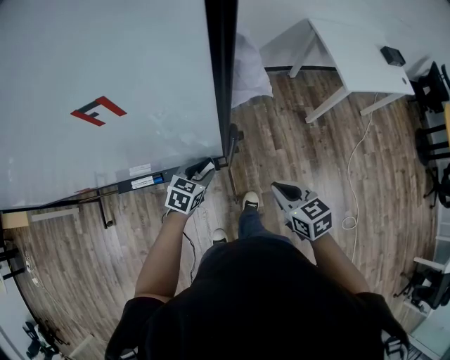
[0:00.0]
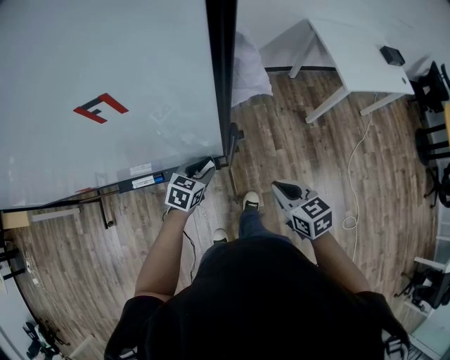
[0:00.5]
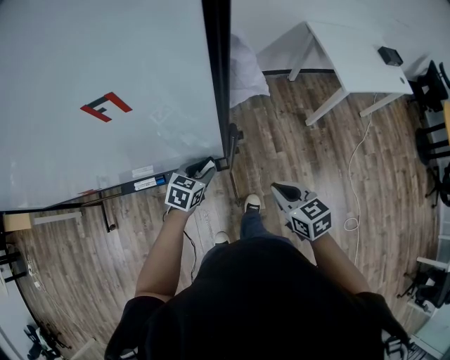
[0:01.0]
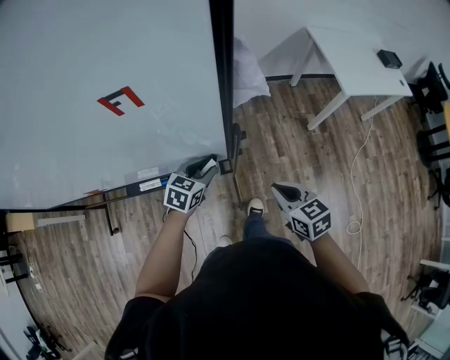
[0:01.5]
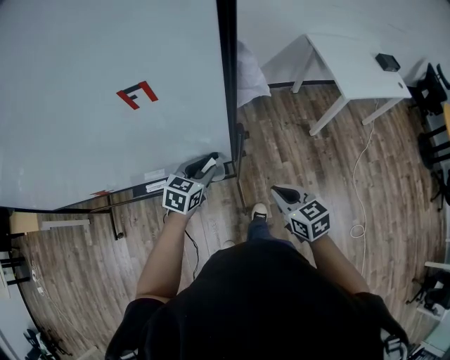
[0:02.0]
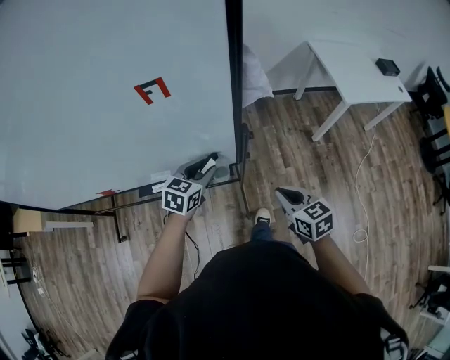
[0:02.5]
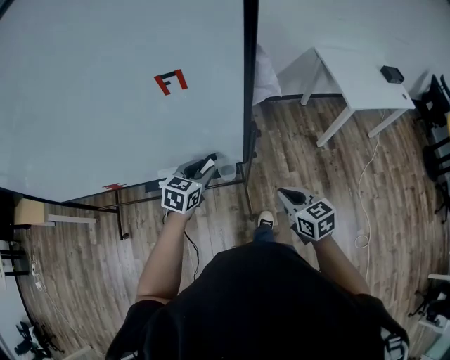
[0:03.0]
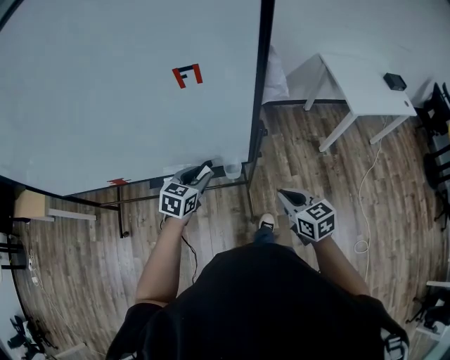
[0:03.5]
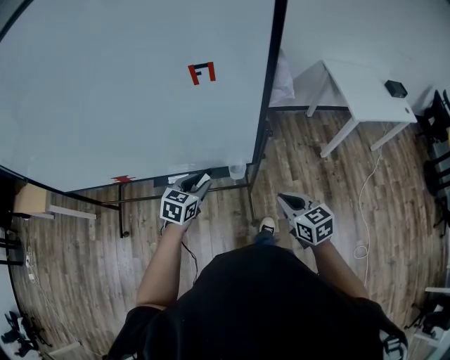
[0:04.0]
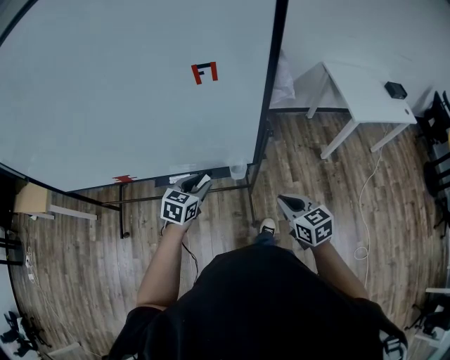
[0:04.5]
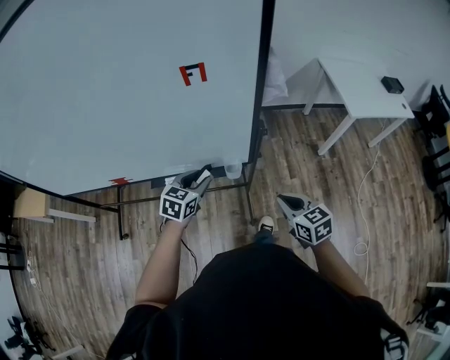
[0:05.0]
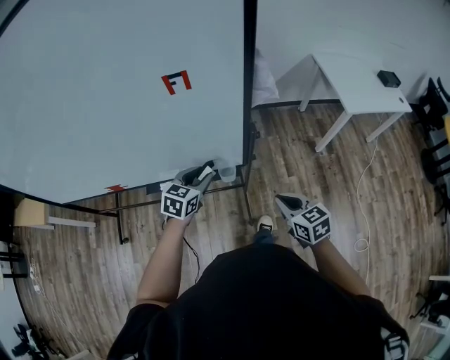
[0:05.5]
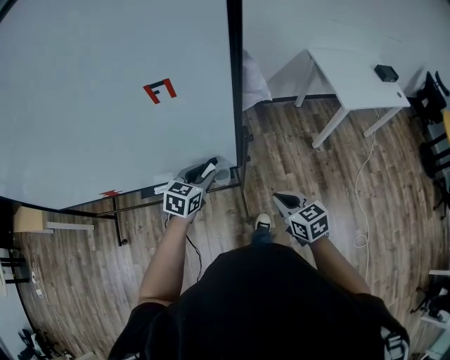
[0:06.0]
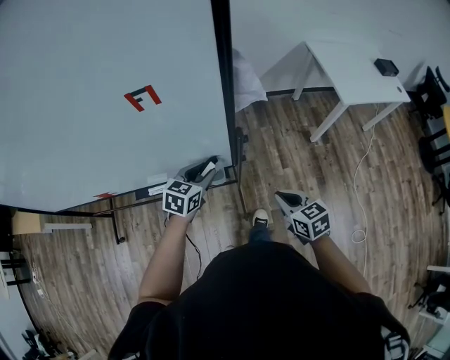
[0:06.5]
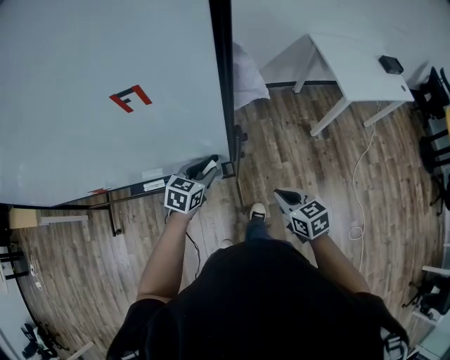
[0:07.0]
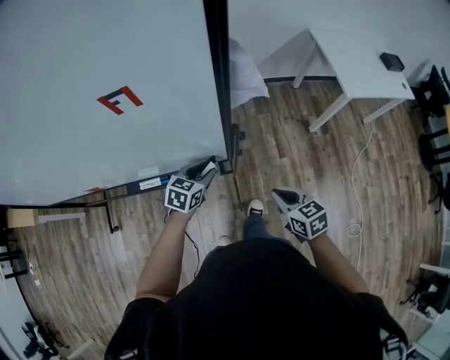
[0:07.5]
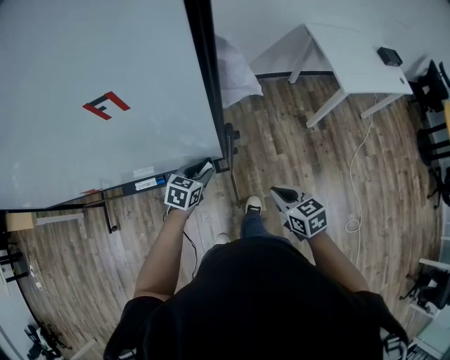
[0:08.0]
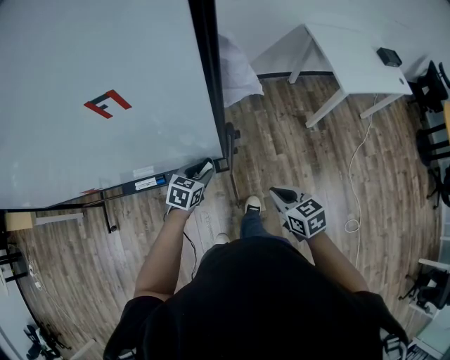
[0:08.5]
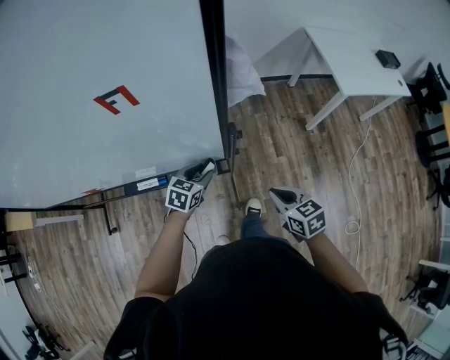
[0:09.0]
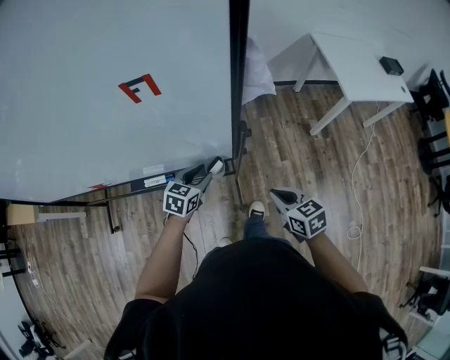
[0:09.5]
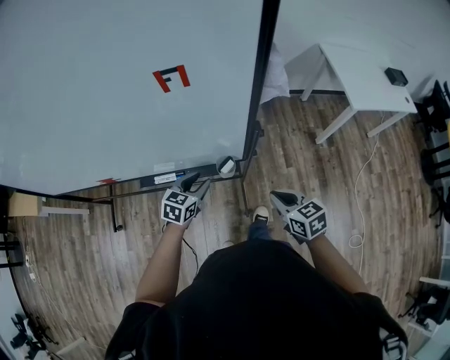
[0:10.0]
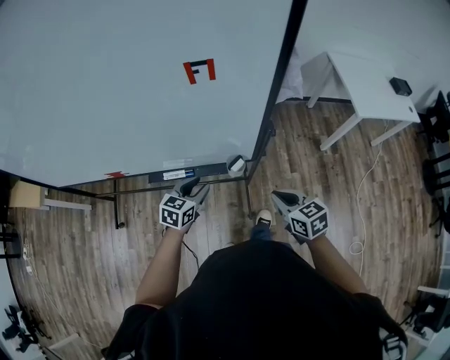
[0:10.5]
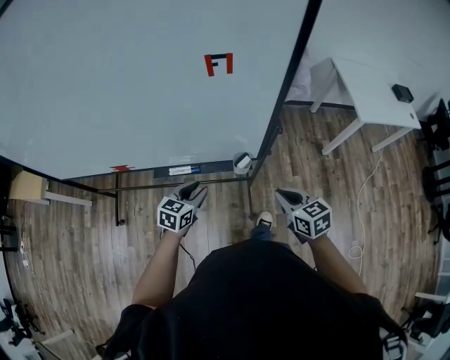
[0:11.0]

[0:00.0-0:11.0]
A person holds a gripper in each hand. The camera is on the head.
0:00.0 to 0:02.0: The left gripper goes approximately 10 cm upward.
0:02.0 to 0:03.5: The right gripper changes place by approximately 5 cm, while the left gripper goes some 10 cm to the left and backward.
0:03.5 to 0:05.5: The grippers make only small movements.
0:05.5 to 0:07.5: The right gripper is displaced downward and forward by some 5 cm. The left gripper heads downward and to the right, covering some 10 cm.
0:07.5 to 0:09.0: The grippers stay close to where they were, moving slightly.
0:09.0 to 0:11.0: The left gripper is displaced to the left and backward by roughly 20 cm; the right gripper heads to the left, covering approximately 10 cm.

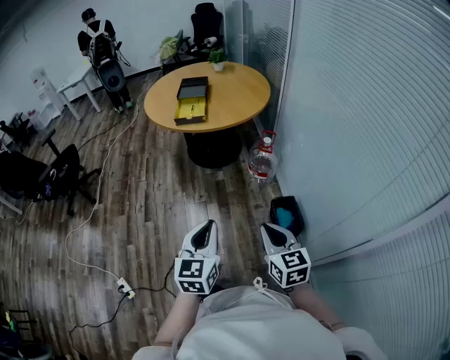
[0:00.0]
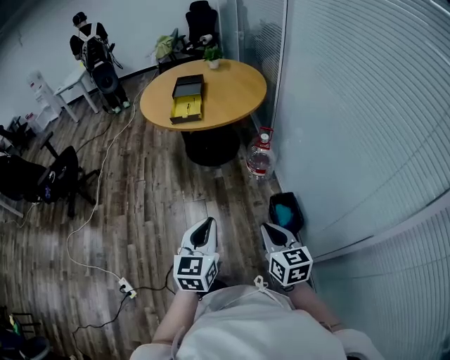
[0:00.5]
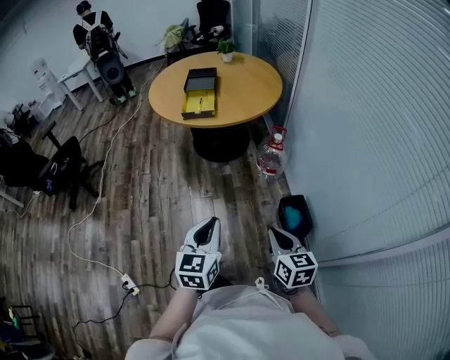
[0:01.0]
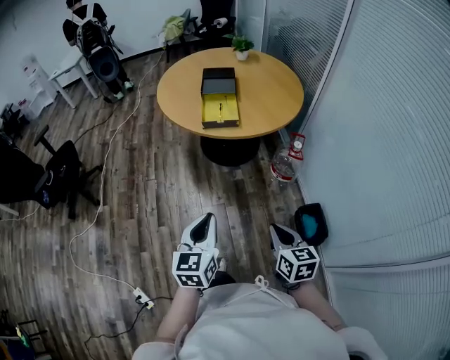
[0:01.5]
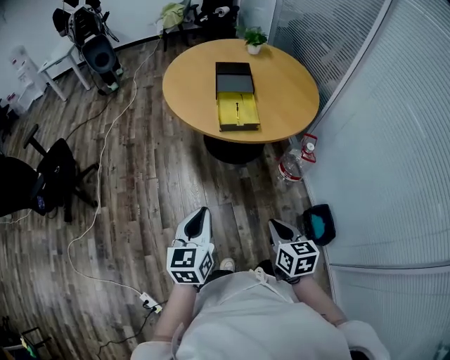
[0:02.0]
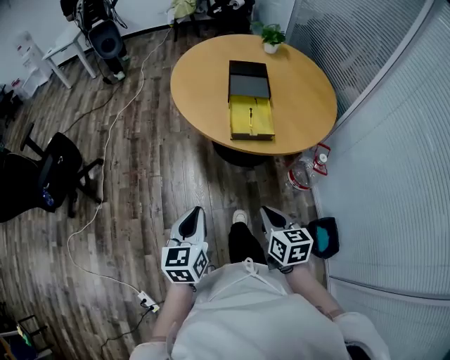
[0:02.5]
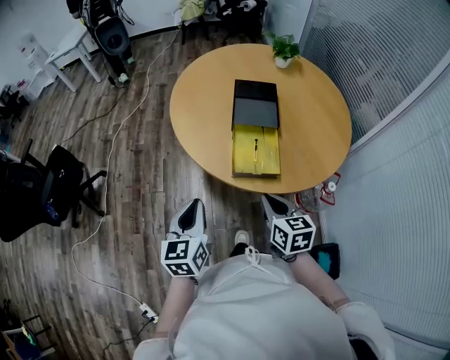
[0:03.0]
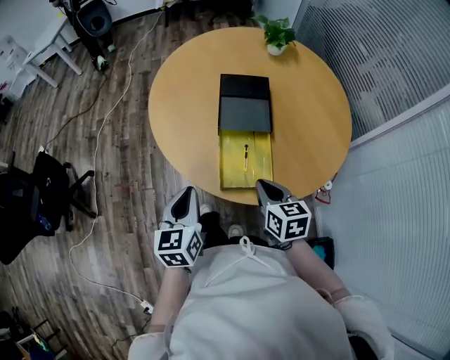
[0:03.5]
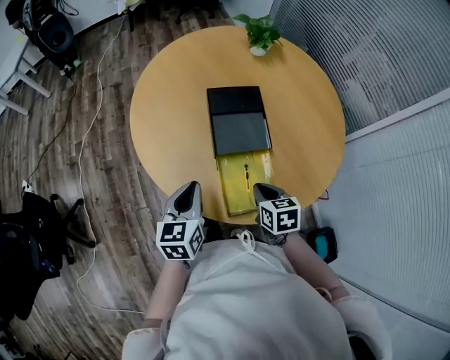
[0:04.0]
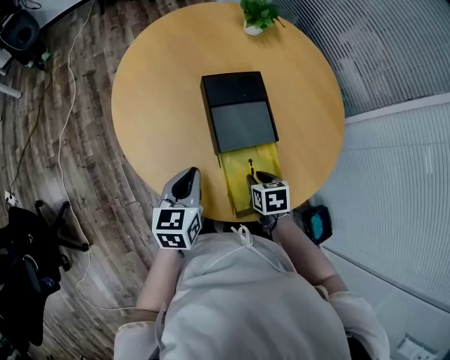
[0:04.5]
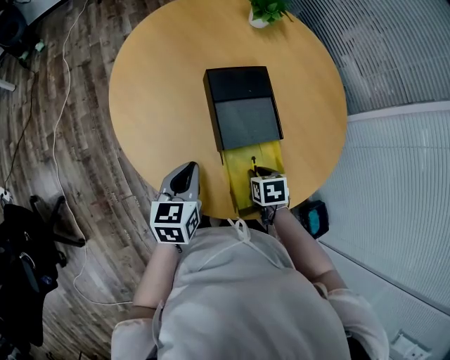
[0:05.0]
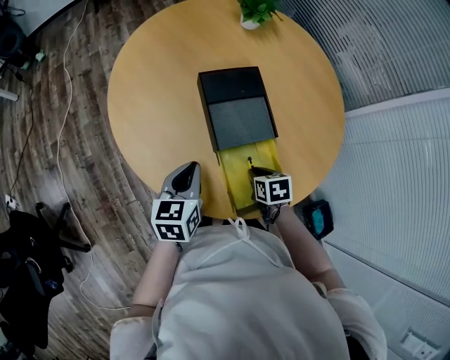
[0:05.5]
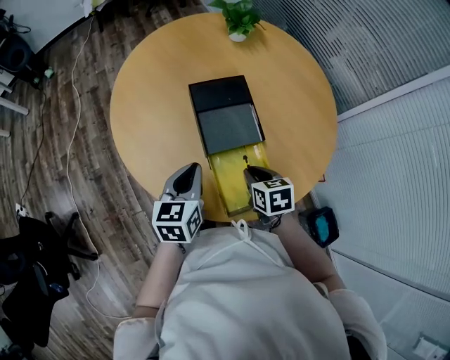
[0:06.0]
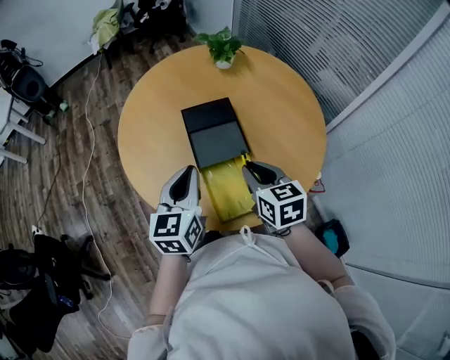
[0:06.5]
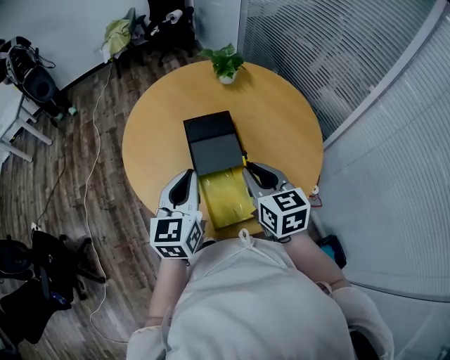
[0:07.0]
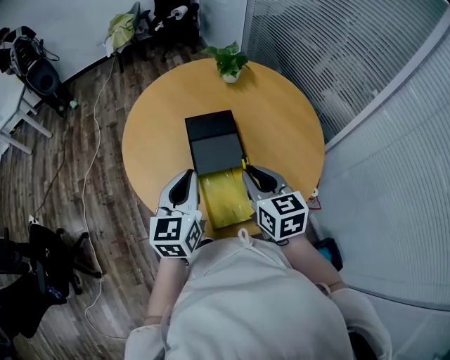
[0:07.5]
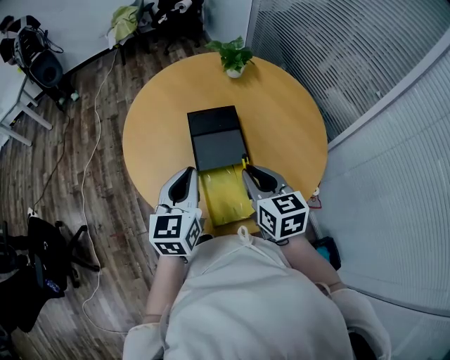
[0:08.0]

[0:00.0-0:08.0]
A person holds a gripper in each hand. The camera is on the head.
0:00.0 to 0:02.0: The pair of grippers is taken to the left and forward, roughly 50 cm.
0:02.0 to 0:04.0: The pair of grippers is taken forward, about 60 cm.
0:04.0 to 0:06.0: The left gripper moves forward, roughly 5 cm; the right gripper travels downward and back again, roughly 10 cm each way.
0:06.0 to 0:08.0: The two grippers go about 15 cm upward. The right gripper turns by some 30 degrees.

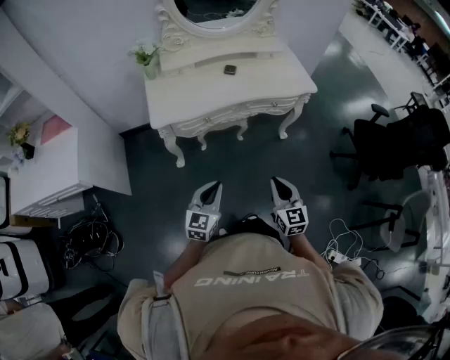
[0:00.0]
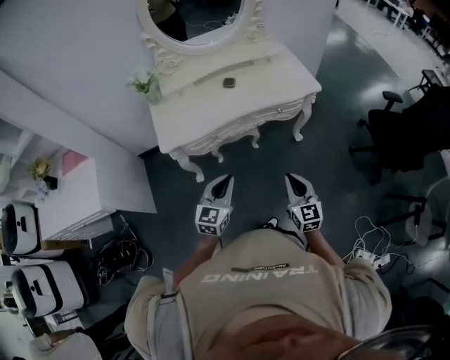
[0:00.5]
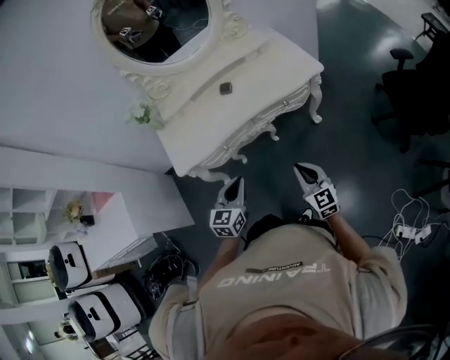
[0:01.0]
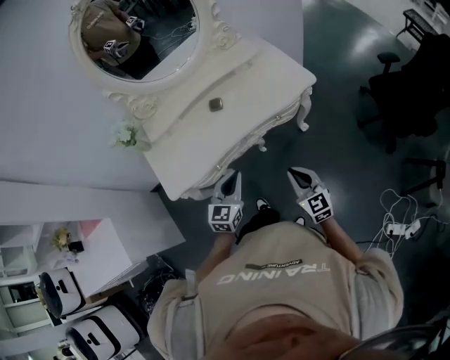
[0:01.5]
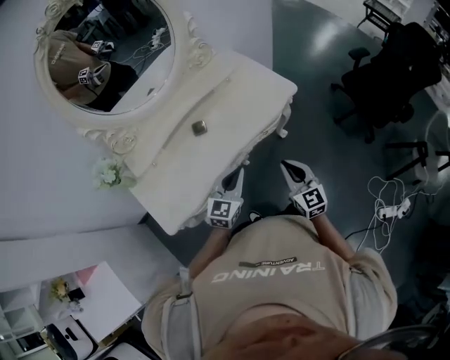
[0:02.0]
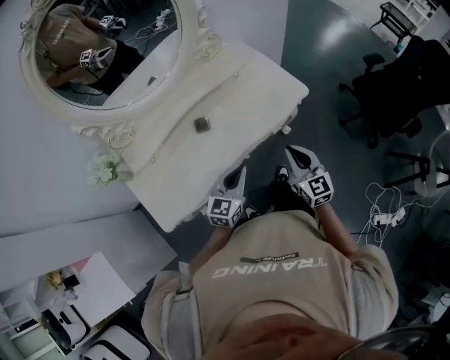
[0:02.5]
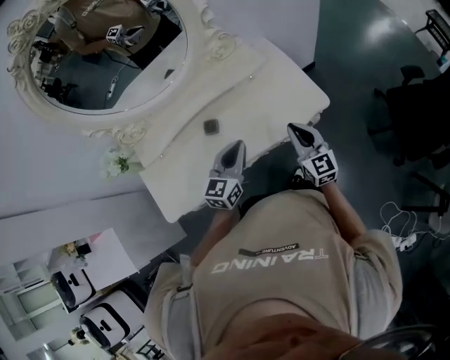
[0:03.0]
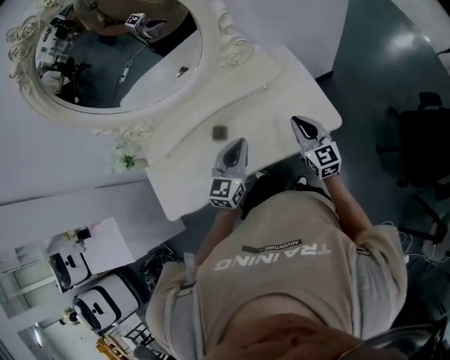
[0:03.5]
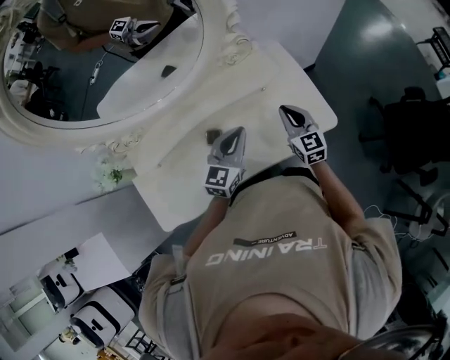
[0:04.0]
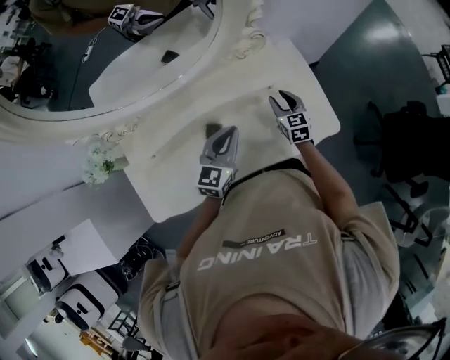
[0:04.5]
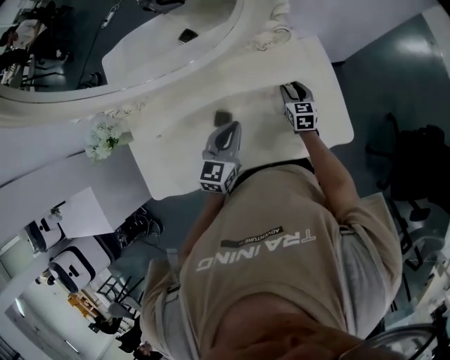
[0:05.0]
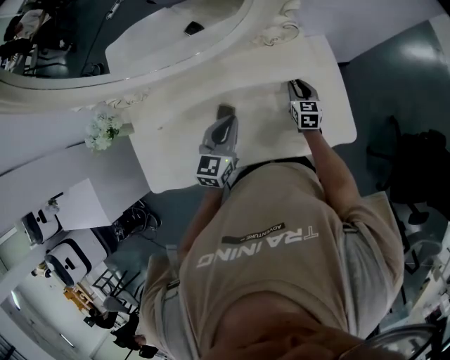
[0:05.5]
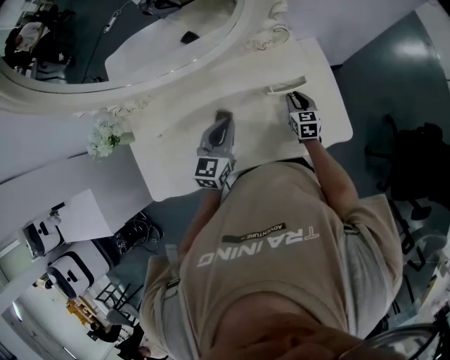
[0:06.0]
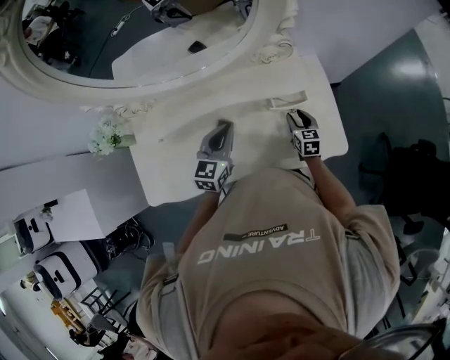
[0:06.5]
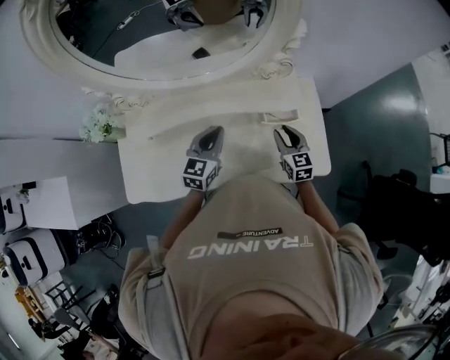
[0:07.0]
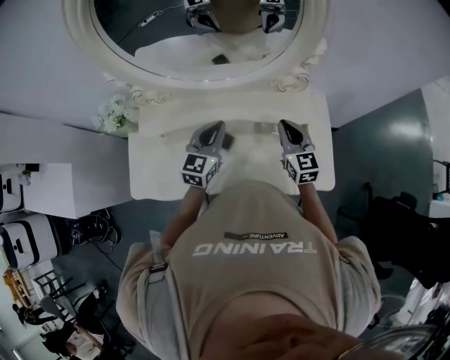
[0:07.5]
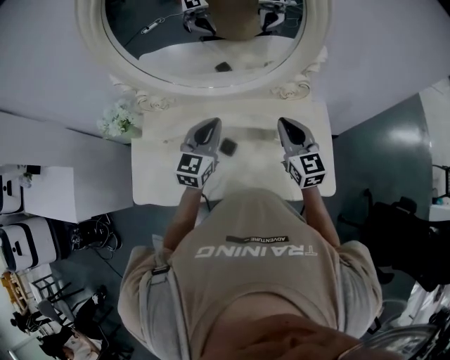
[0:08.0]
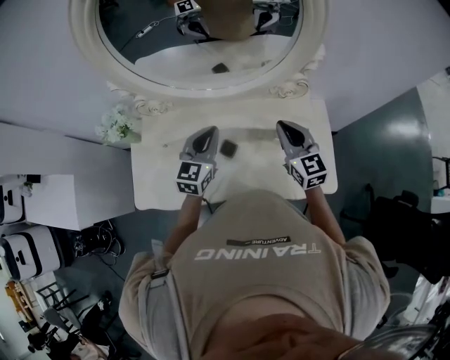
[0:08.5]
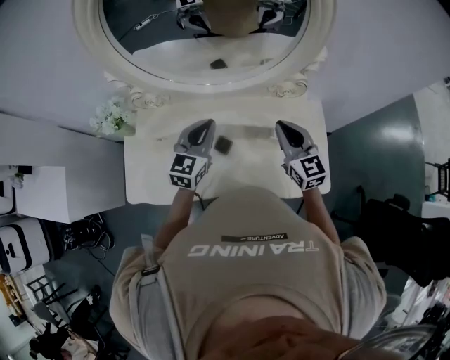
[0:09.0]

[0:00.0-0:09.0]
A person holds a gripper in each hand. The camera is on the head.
0:00.0 to 0:02.0: The grippers both shift forward by approximately 35 cm. The left gripper turns by approximately 30 degrees.
0:02.0 to 0:04.5: Both grippers travel together forward, about 40 cm. The left gripper swivels about 20 degrees, while the right gripper rotates some 20 degrees, and opens.
0:04.5 to 0:07.0: The right gripper moves roughly 5 cm; the left gripper heads to the left, covering roughly 5 cm.
0:07.0 to 0:09.0: The left gripper travels upward and to the left by some 10 cm. Meanwhile the right gripper shifts about 20 cm upward and to the left, turns by roughly 20 degrees, and closes its fingers.
